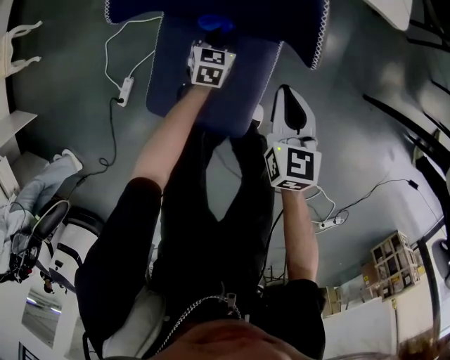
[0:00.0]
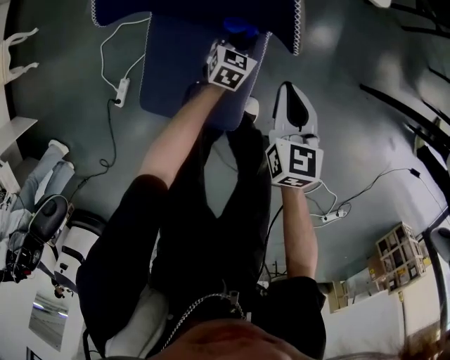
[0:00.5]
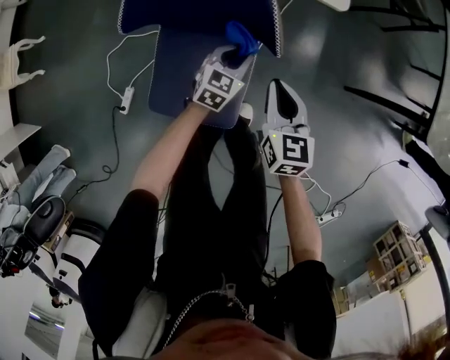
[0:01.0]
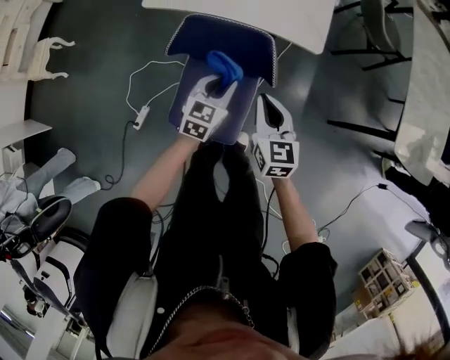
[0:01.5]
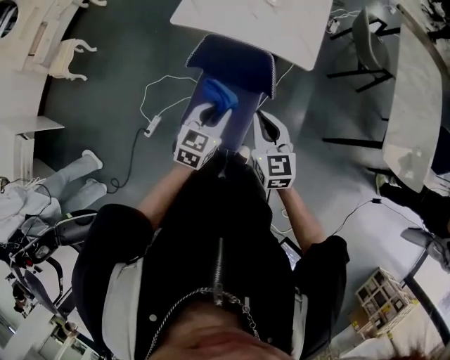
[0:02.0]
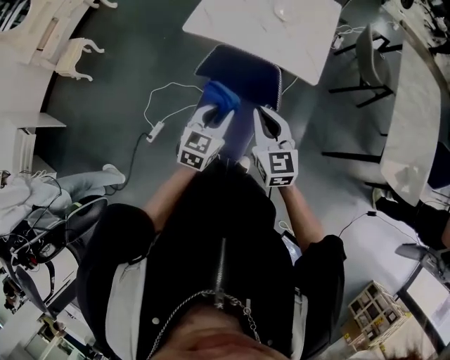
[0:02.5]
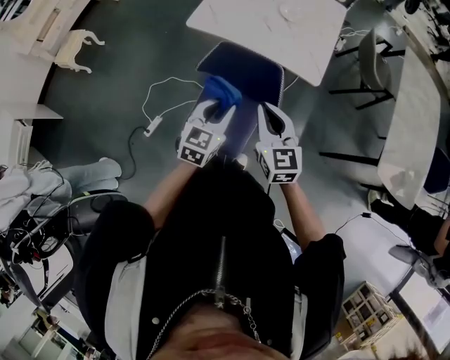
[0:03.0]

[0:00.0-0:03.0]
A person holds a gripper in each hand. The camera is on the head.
0:00.0 to 0:01.5: Both grippers travel together upward, approximately 35 cm.
0:01.5 to 0:03.0: The right gripper moves upward, approximately 15 cm, while the left gripper travels upward and backward by about 20 cm.

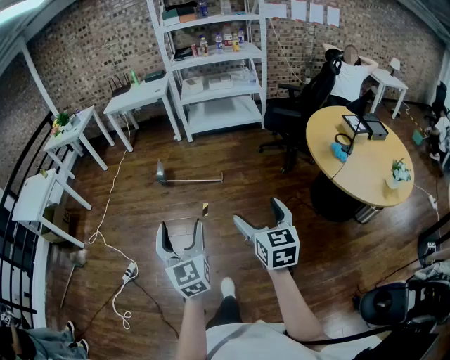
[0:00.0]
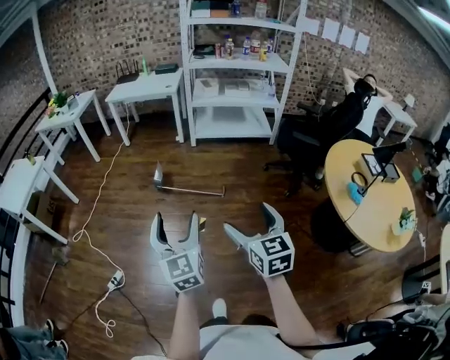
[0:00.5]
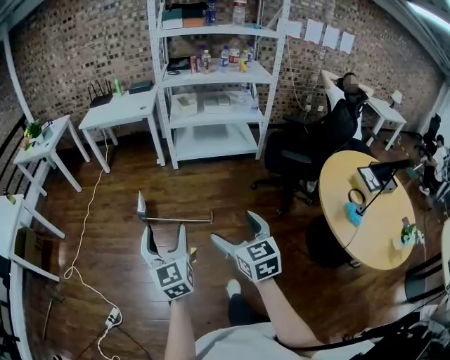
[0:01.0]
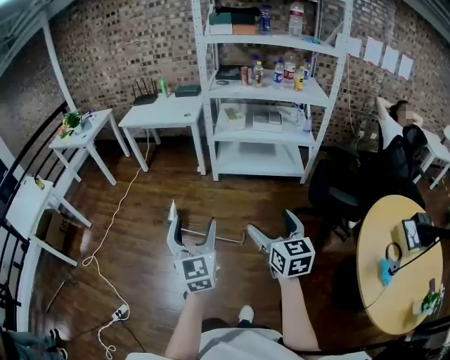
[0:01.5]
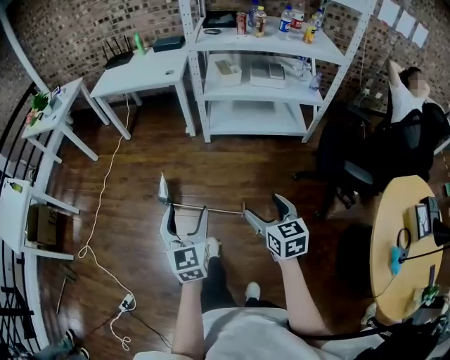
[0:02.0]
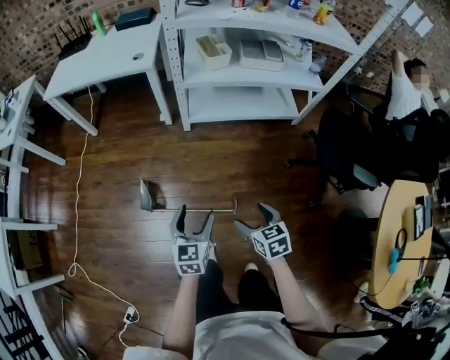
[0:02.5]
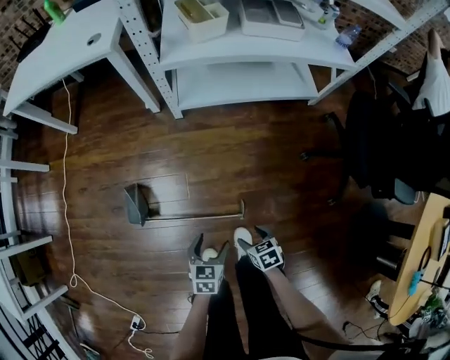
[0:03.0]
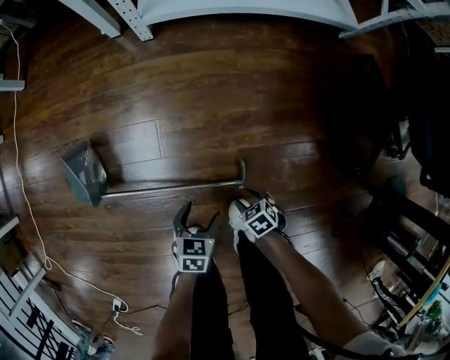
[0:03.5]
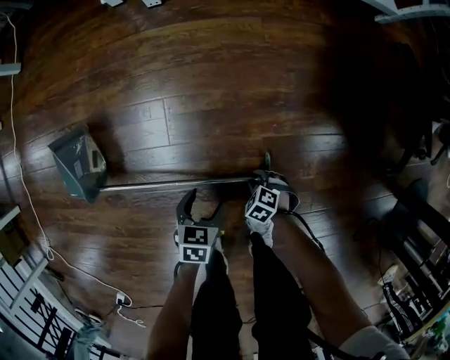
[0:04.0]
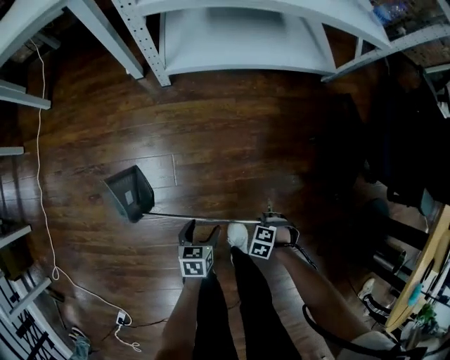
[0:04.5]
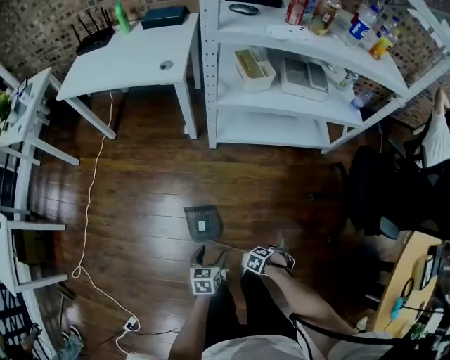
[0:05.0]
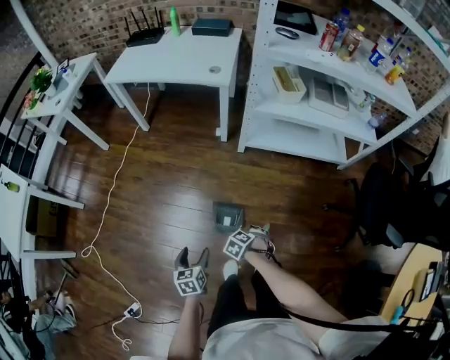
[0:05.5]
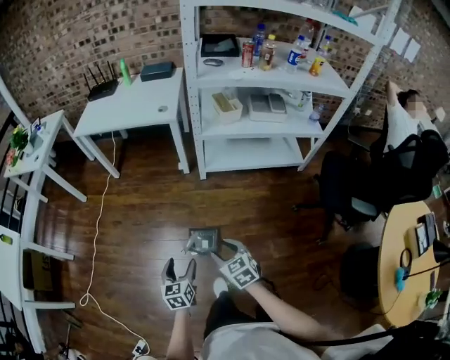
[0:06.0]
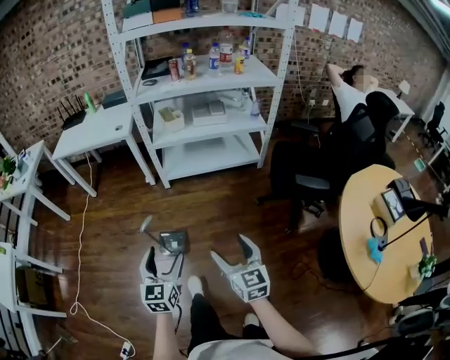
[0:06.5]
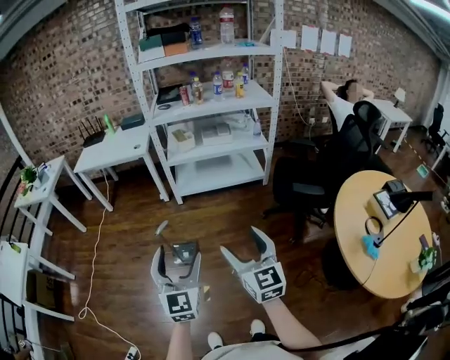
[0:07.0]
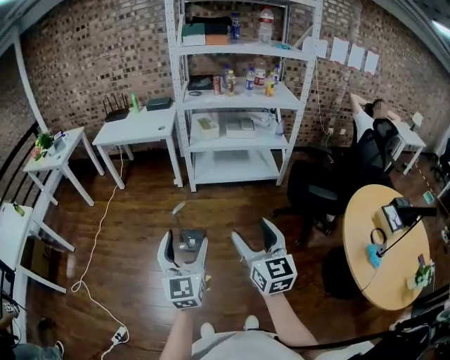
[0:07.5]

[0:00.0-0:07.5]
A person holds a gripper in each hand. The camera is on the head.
0:00.0 to 0:02.0: The two grippers travel together, forward, some 70 cm.
0:02.0 to 0:04.0: The two grippers go about 90 cm downward. The right gripper tilts its fingers some 50 degrees downward, and closes its fingers. Meanwhile the left gripper tips its fingers downward by roughly 50 degrees.
0:04.0 to 0:05.5: Both grippers travel together upward, some 60 cm. The left gripper turns by some 40 degrees.
0:05.5 to 0:07.5: Both grippers move upward, some 50 cm. The right gripper tilts its fingers about 80 degrees upward; the left gripper tilts its fingers approximately 50 degrees upward.

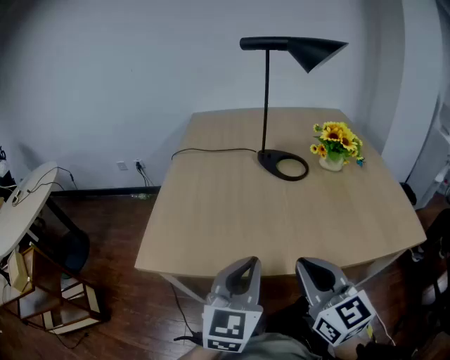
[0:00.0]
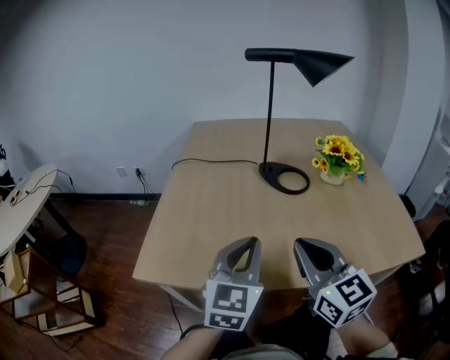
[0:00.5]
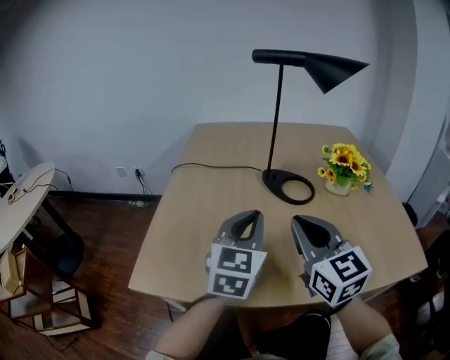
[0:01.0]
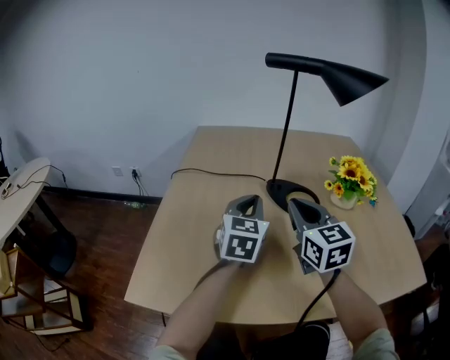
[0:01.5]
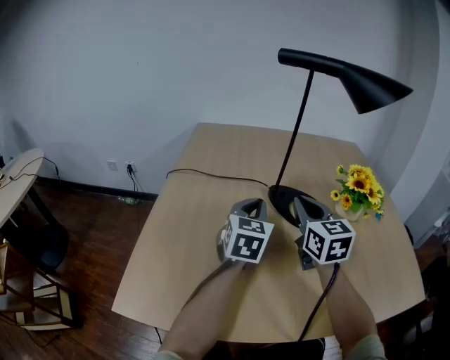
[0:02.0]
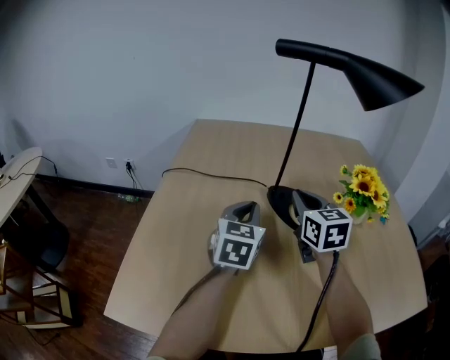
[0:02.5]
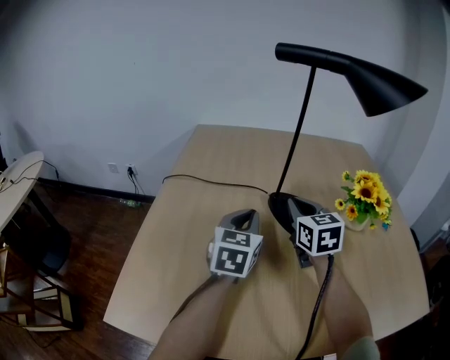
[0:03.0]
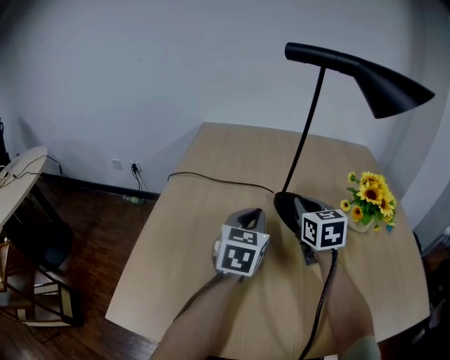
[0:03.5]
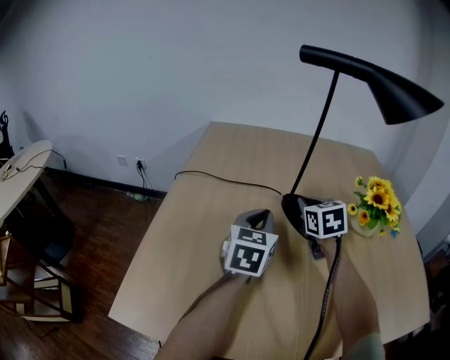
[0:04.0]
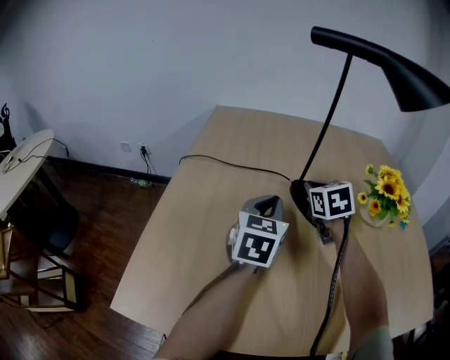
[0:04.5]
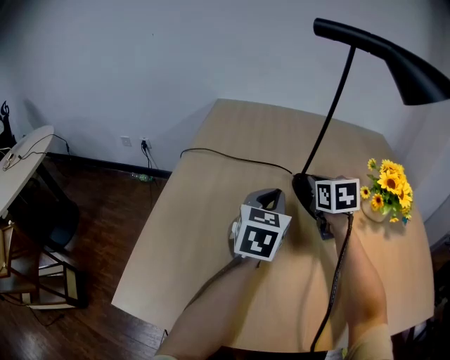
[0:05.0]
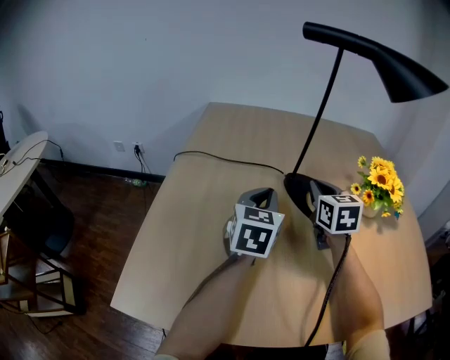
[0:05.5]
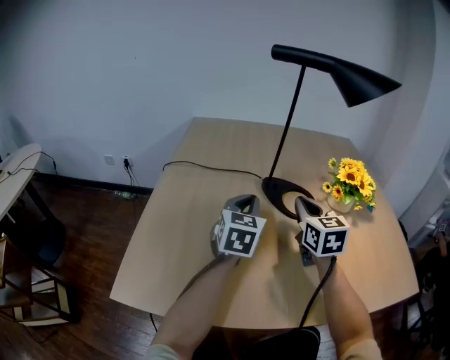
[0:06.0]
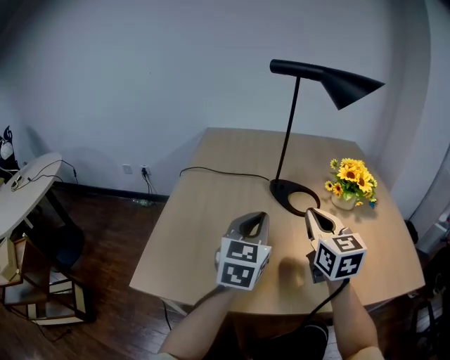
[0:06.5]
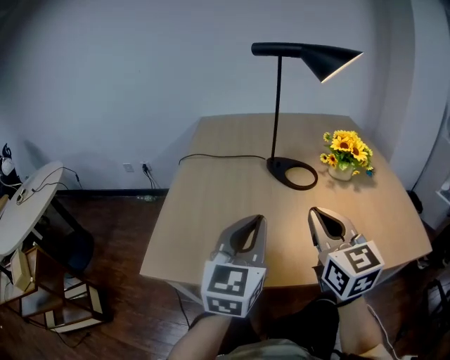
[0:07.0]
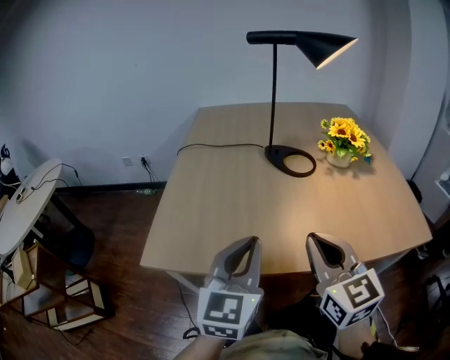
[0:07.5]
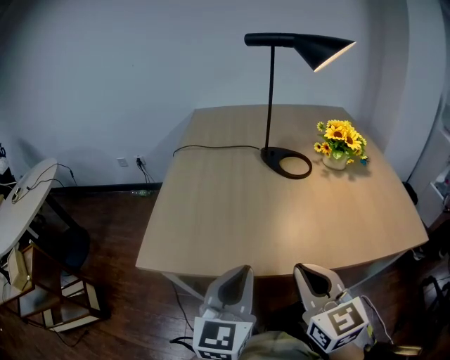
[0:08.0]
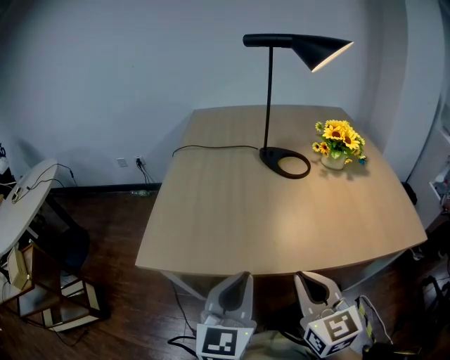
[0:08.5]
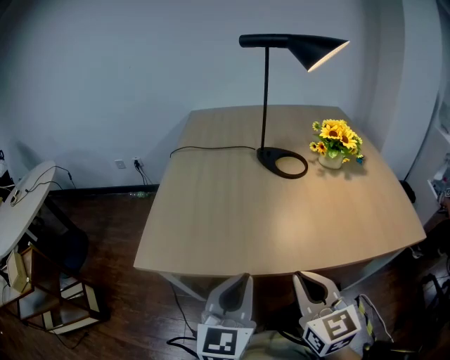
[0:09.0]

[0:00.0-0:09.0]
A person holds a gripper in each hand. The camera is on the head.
0:00.0 to 0:02.0: Both grippers travel together forward, approximately 35 cm.
0:02.0 to 0:04.5: The right gripper goes approximately 15 cm forward and downward, and swivels approximately 20 degrees.
0:04.5 to 0:07.0: The two grippers go approximately 30 cm backward. The right gripper rotates approximately 30 degrees.
0:07.0 to 0:09.0: Both grippers travel together backward and downward, roughly 15 cm.

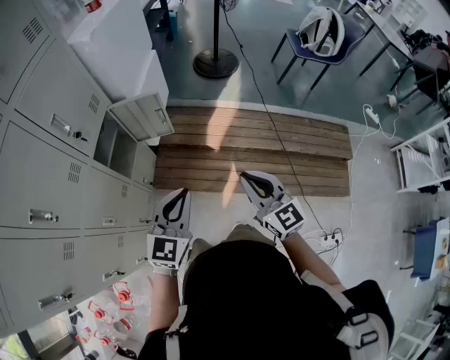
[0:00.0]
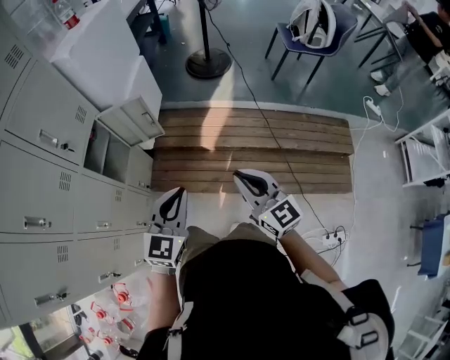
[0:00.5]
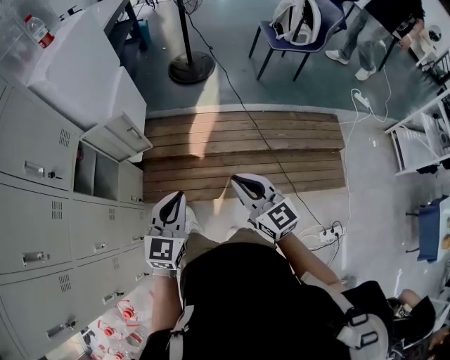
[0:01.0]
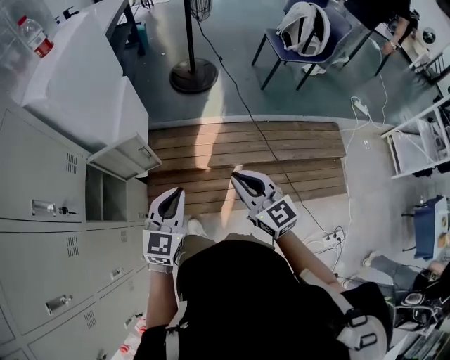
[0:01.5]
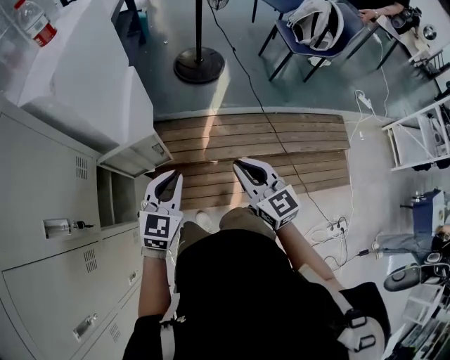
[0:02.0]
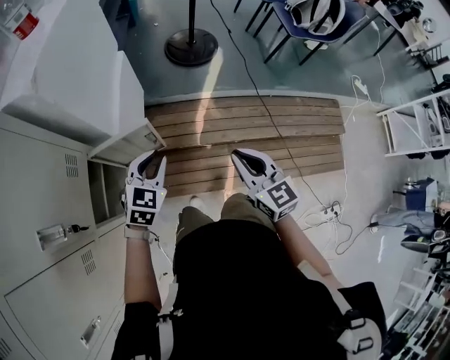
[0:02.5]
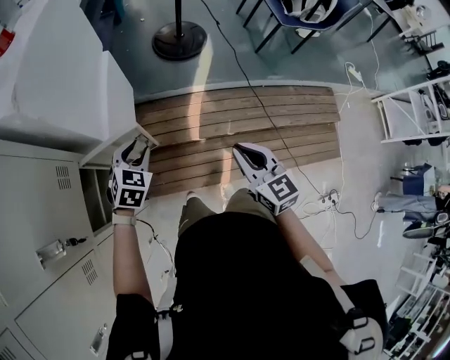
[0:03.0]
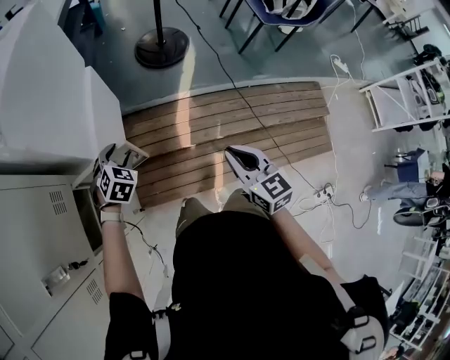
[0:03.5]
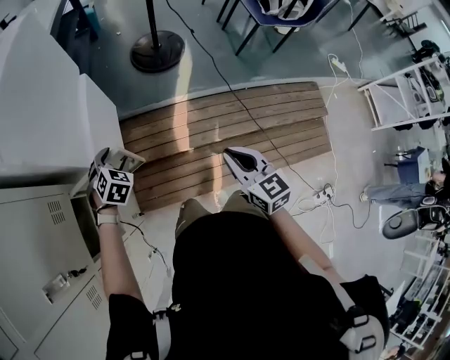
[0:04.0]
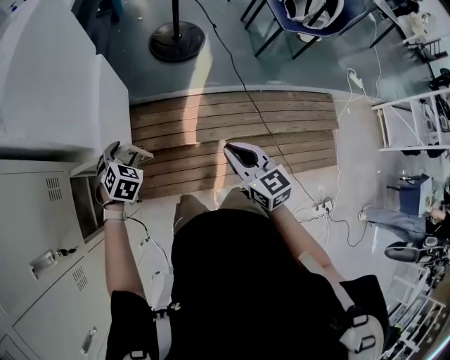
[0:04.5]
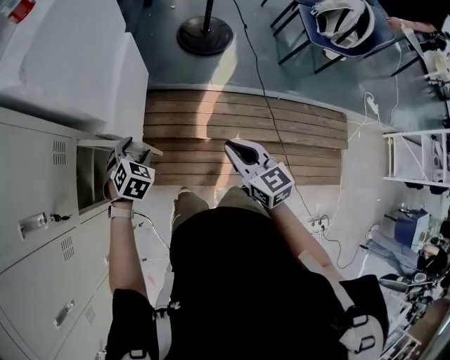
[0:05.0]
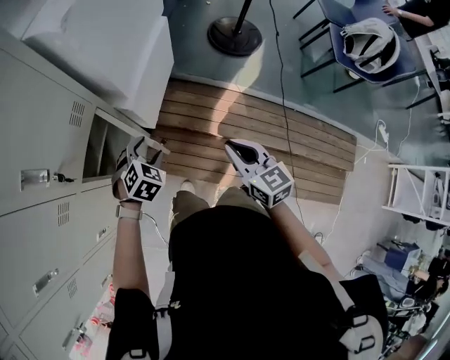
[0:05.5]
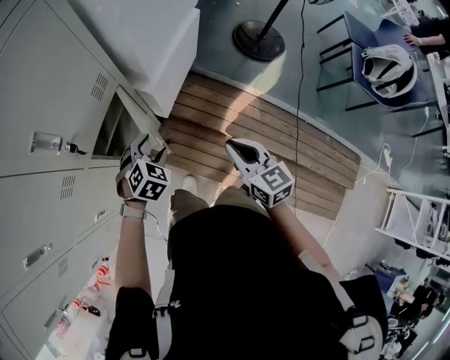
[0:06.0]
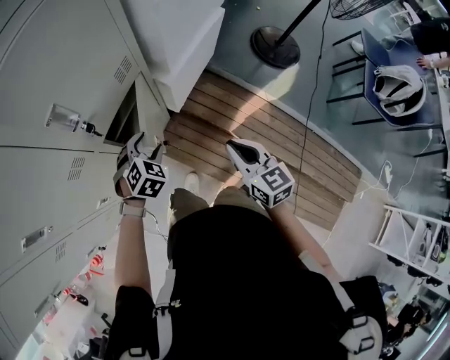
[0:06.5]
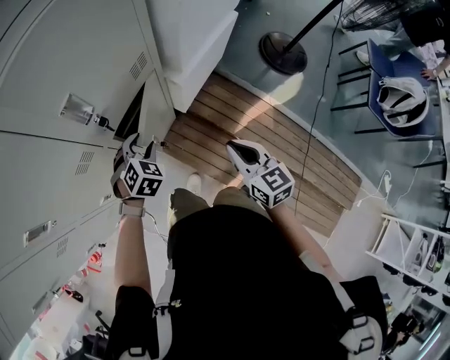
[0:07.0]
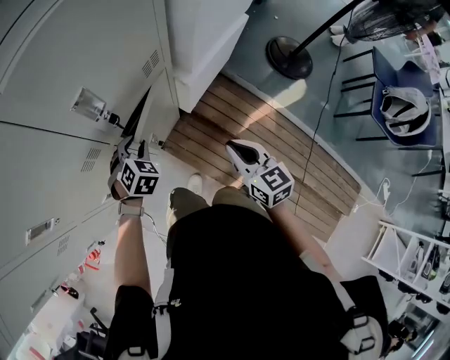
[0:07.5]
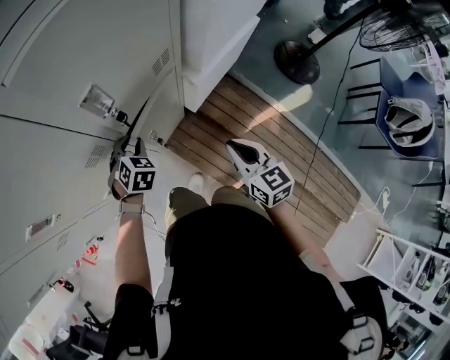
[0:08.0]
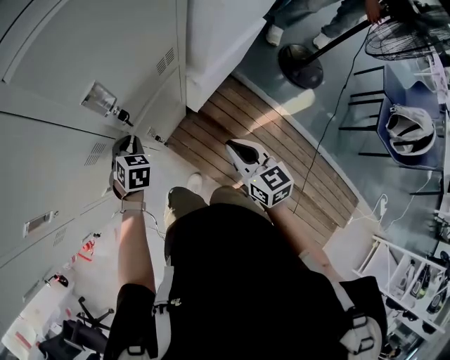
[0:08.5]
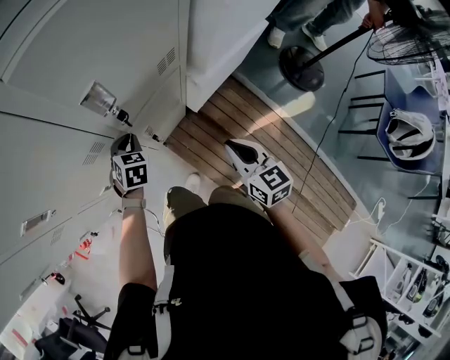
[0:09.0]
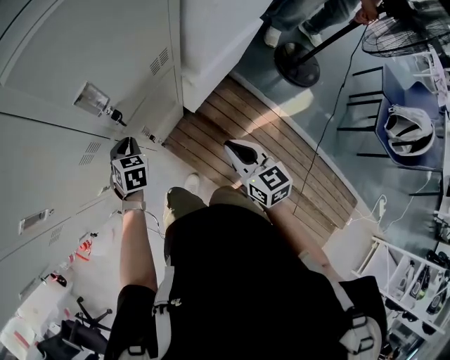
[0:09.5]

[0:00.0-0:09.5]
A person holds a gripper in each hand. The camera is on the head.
0:00.0 to 0:02.0: The two grippers go about 30 cm forward.
0:02.0 to 0:04.0: The left gripper moves forward, downward and to the left, about 25 cm, tilts its fingers some 40 degrees downward, and opens. Meanwhile the right gripper is displaced to the right, forward and downward by roughly 10 cm.
0:04.0 to 0:05.5: The right gripper heads to the left, covering some 10 cm, and changes its angle by some 30 degrees, while the left gripper heads backward, covering approximately 15 cm.
0:05.5 to 0:07.5: The left gripper shifts by roughly 25 cm, rotates approximately 30 degrees, and closes up, while the right gripper moves approximately 15 cm.
0:07.5 to 0:09.5: The left gripper rotates roughly 30 degrees, and closes its fingers.
